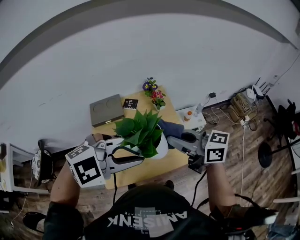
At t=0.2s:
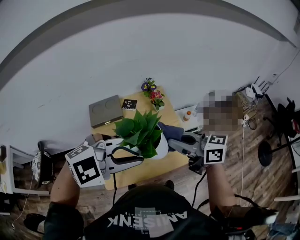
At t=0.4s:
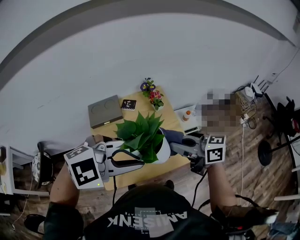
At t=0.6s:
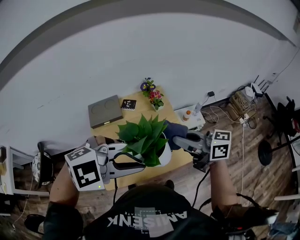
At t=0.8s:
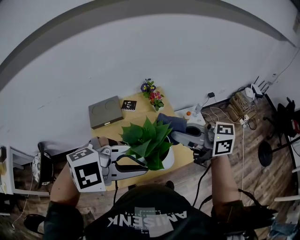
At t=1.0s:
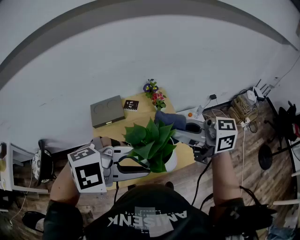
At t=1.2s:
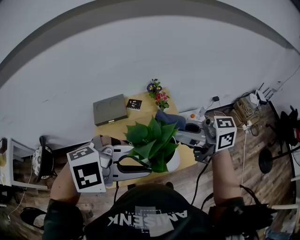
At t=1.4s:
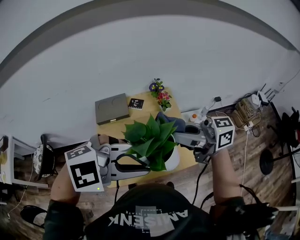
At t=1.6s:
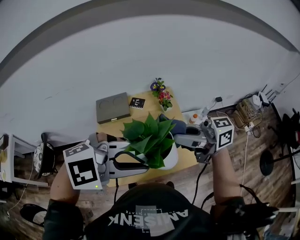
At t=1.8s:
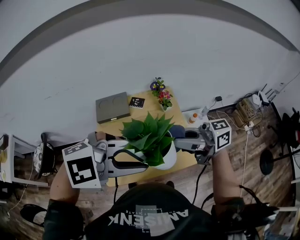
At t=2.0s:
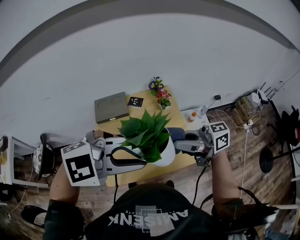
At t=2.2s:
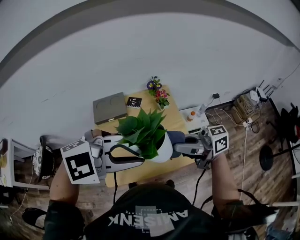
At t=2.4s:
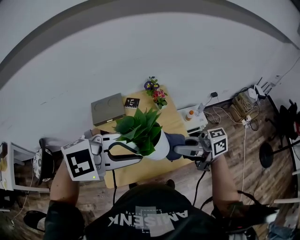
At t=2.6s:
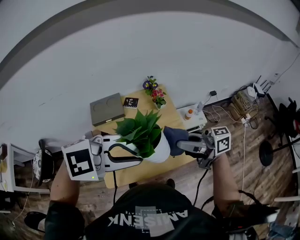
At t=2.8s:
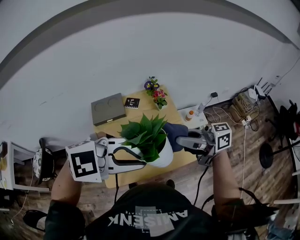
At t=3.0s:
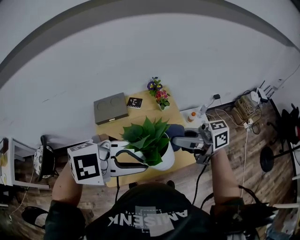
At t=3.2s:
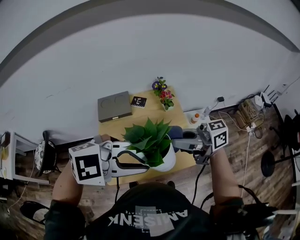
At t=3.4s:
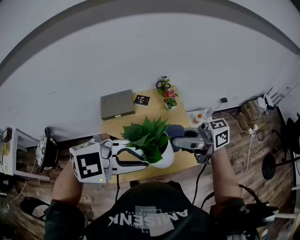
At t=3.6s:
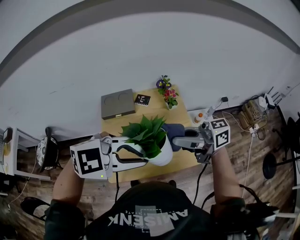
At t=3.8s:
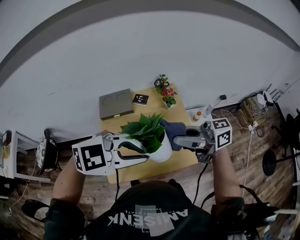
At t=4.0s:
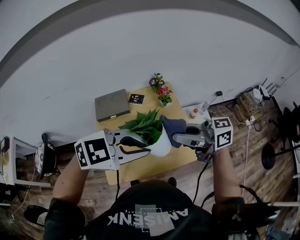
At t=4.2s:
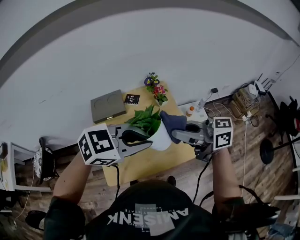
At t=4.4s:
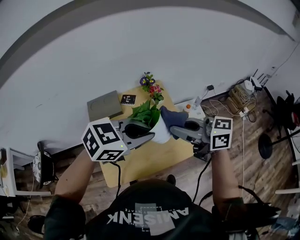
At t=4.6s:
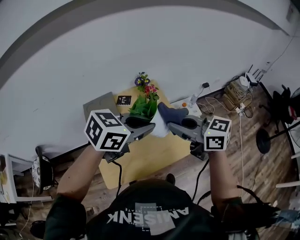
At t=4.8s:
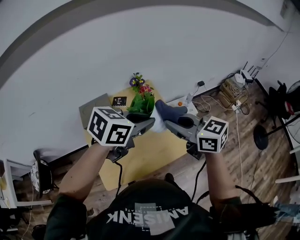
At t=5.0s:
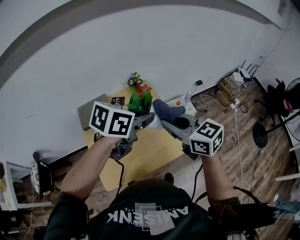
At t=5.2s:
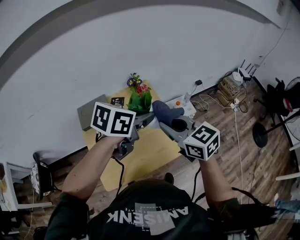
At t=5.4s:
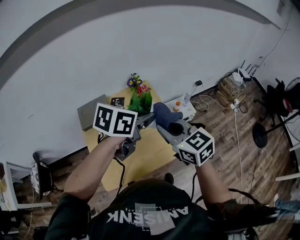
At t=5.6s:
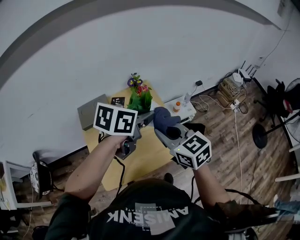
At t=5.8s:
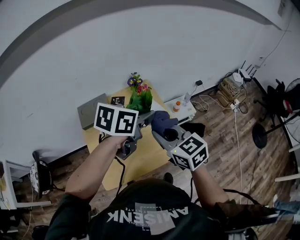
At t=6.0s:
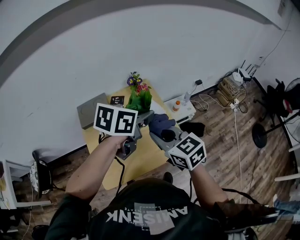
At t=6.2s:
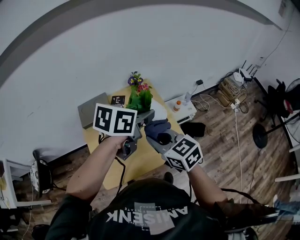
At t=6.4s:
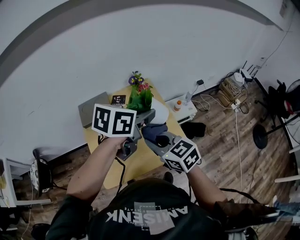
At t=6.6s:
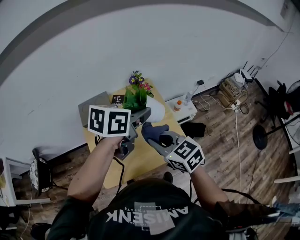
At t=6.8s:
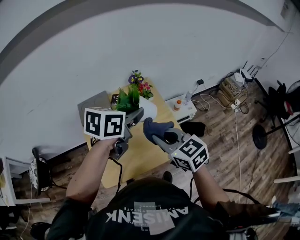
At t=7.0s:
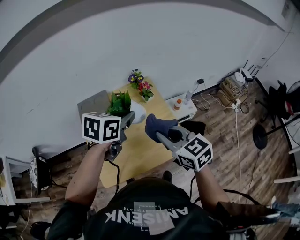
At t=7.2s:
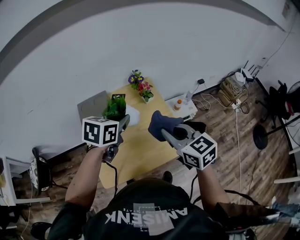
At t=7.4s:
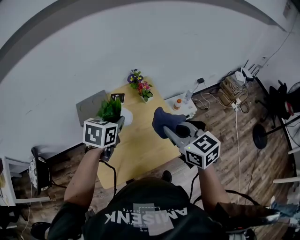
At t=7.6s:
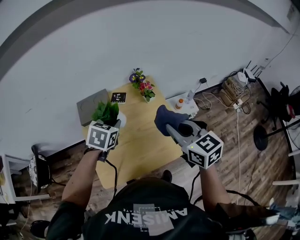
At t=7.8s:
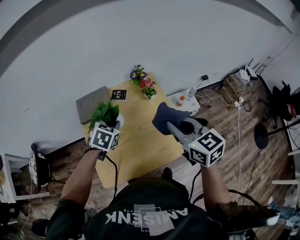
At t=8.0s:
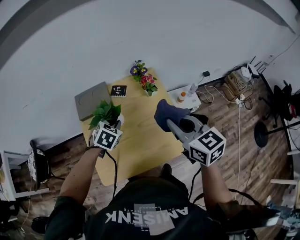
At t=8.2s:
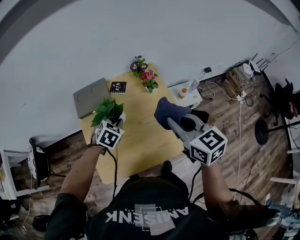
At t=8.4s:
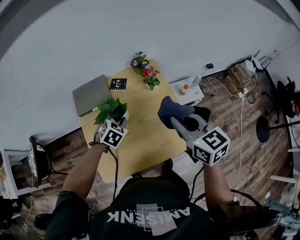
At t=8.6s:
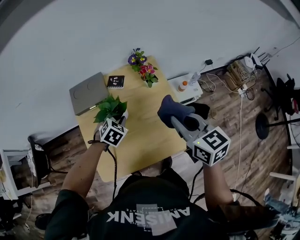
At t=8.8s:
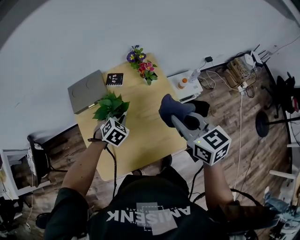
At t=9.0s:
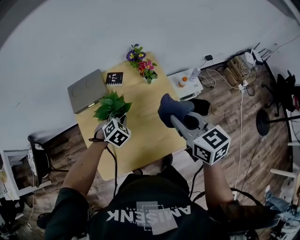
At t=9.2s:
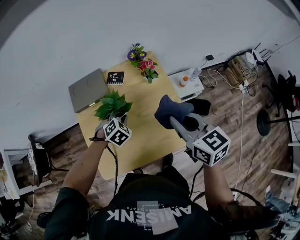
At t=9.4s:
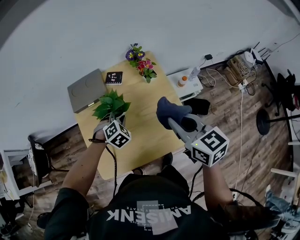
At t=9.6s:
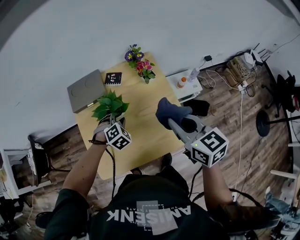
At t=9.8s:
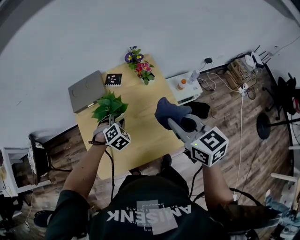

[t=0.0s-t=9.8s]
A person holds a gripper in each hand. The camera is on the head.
t=0.0s to t=1.4s: The right gripper goes approximately 5 cm upward, and turns by about 30 degrees.
t=1.4s to t=2.8s: The right gripper shifts about 5 cm downward.
t=2.8s to t=4.2s: The left gripper shifts by roughly 10 cm, and swivels approximately 30 degrees.
t=4.2s to t=5.6s: The left gripper shifts by roughly 10 cm, and rotates about 40 degrees, while the right gripper moves about 5 cm, and turns by roughly 50 degrees.
t=5.6s to t=7.0s: The left gripper goes some 10 cm to the left.
t=7.0s to t=8.4s: The left gripper heads downward, covering roughly 20 cm, and changes its angle by roughly 40 degrees, while the right gripper is displaced forward by some 10 cm.
t=8.4s to t=9.8s: The left gripper turns by roughly 20 degrees.

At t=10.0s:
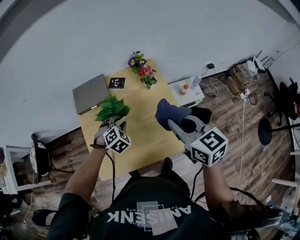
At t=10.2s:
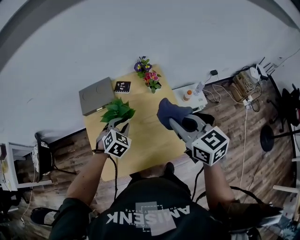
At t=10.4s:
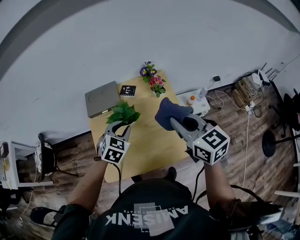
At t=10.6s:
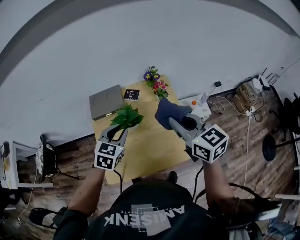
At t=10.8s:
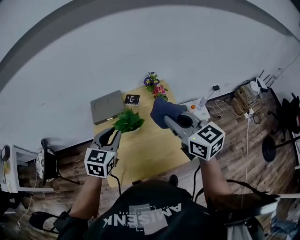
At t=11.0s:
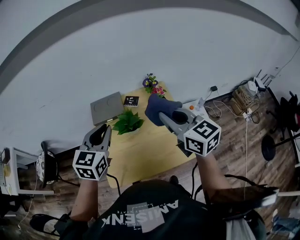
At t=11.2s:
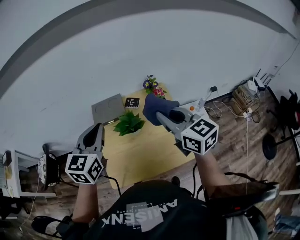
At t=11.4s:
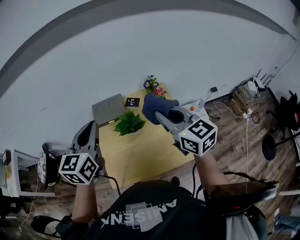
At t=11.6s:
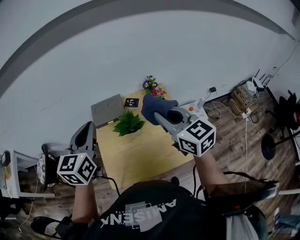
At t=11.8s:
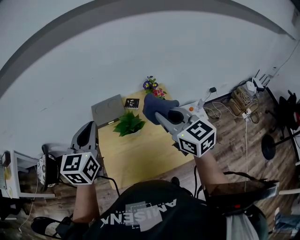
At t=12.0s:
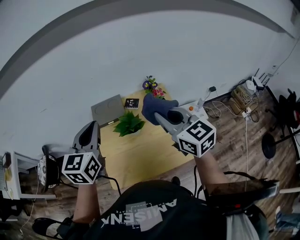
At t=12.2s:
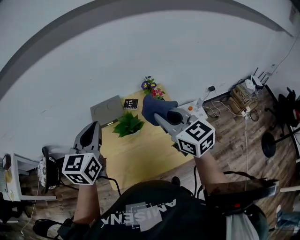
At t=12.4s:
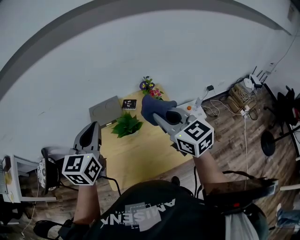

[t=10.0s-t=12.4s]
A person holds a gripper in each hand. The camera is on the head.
t=10.0s to t=11.2s: The right gripper travels upward and to the left by about 15 cm; the left gripper travels upward by approximately 30 cm, points its fingers about 40 degrees further upward, and closes its fingers.
t=11.2s to t=12.4s: The grippers make only small movements.

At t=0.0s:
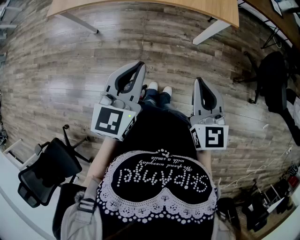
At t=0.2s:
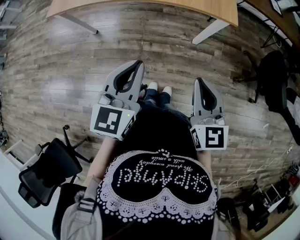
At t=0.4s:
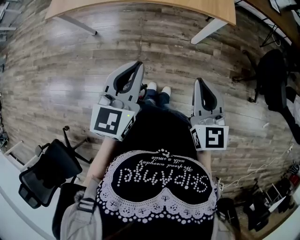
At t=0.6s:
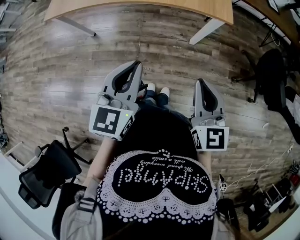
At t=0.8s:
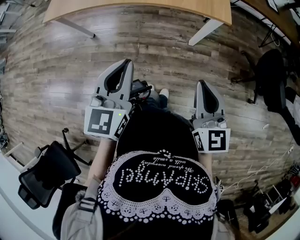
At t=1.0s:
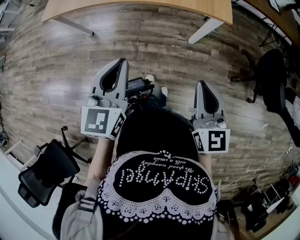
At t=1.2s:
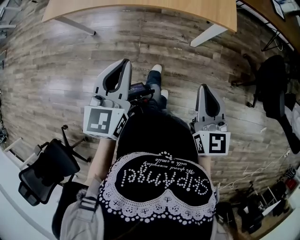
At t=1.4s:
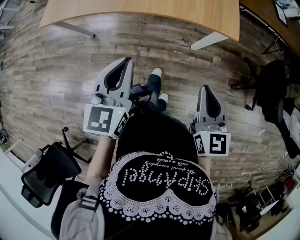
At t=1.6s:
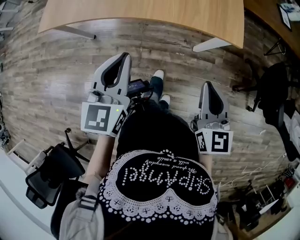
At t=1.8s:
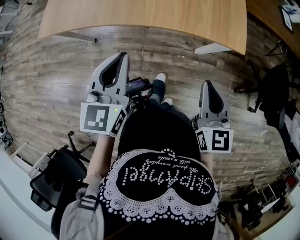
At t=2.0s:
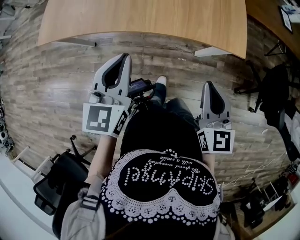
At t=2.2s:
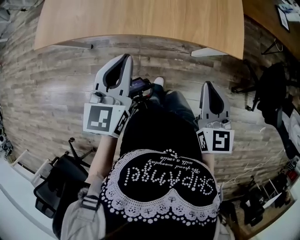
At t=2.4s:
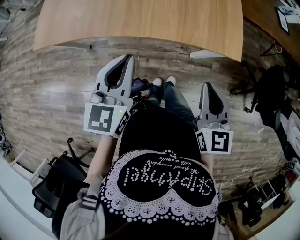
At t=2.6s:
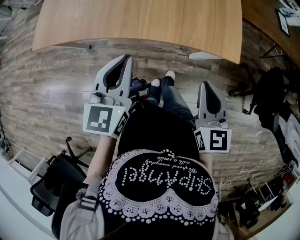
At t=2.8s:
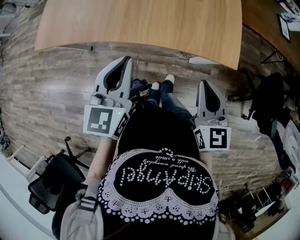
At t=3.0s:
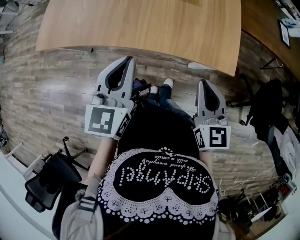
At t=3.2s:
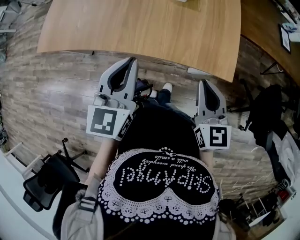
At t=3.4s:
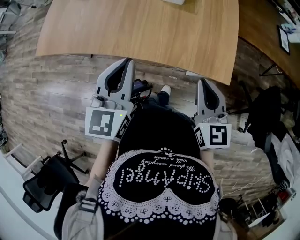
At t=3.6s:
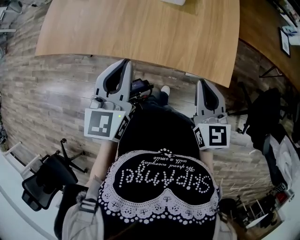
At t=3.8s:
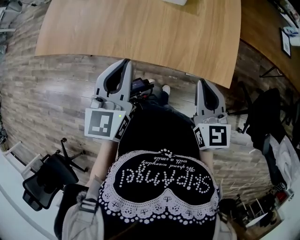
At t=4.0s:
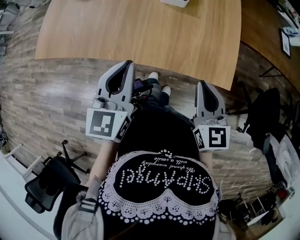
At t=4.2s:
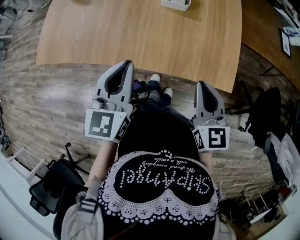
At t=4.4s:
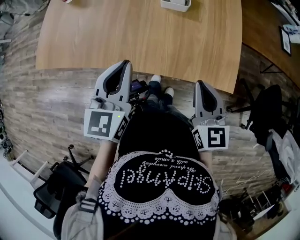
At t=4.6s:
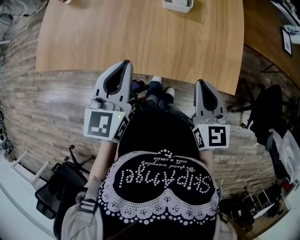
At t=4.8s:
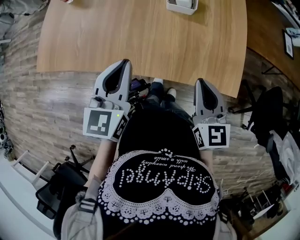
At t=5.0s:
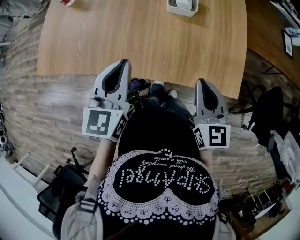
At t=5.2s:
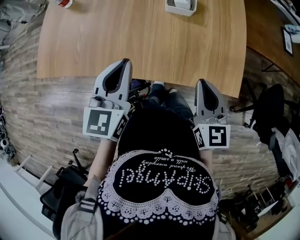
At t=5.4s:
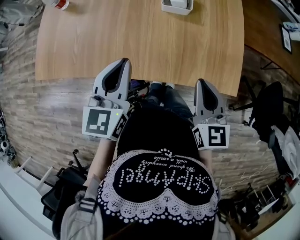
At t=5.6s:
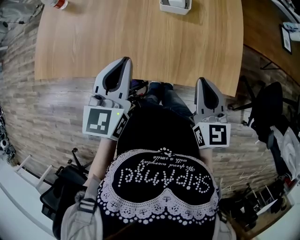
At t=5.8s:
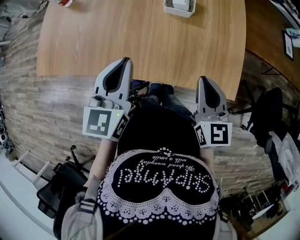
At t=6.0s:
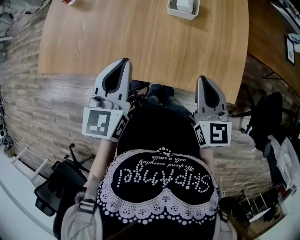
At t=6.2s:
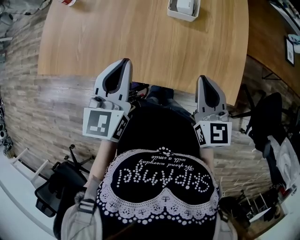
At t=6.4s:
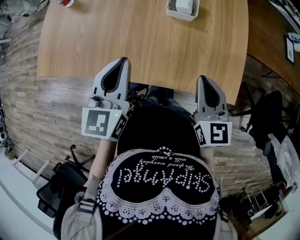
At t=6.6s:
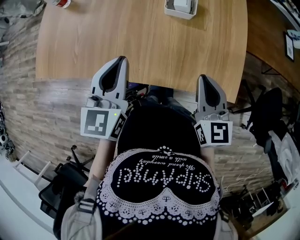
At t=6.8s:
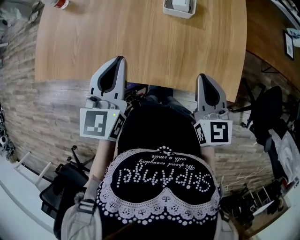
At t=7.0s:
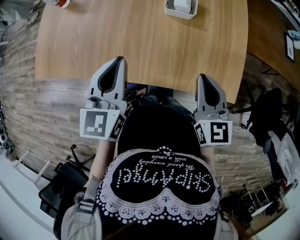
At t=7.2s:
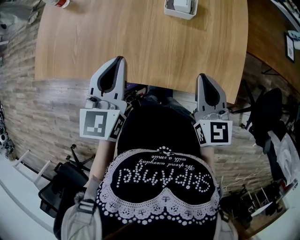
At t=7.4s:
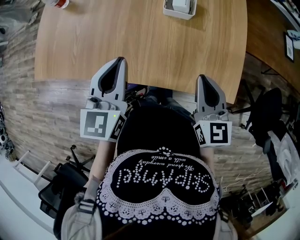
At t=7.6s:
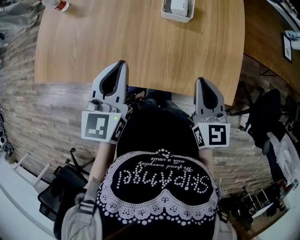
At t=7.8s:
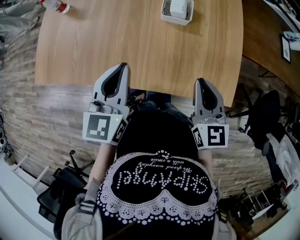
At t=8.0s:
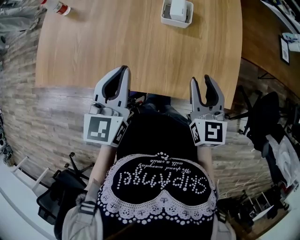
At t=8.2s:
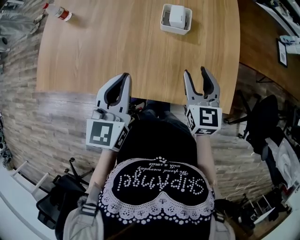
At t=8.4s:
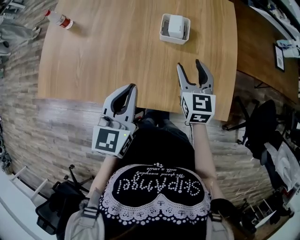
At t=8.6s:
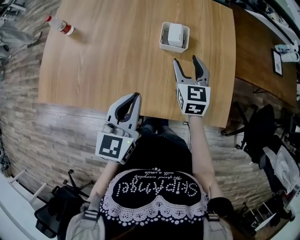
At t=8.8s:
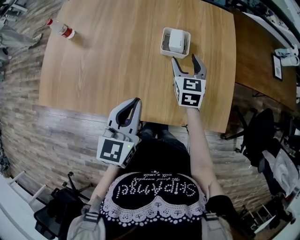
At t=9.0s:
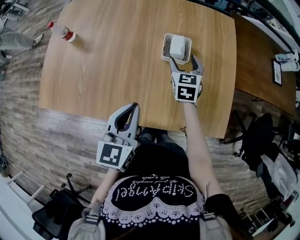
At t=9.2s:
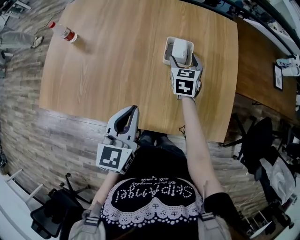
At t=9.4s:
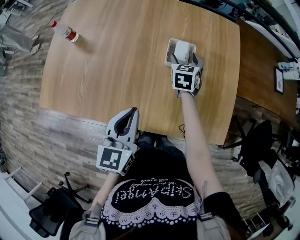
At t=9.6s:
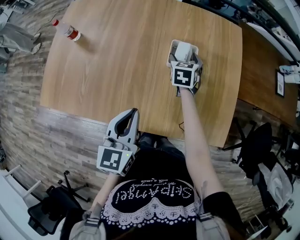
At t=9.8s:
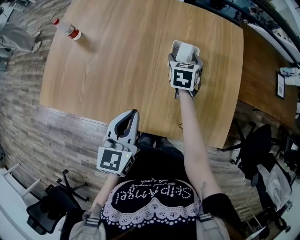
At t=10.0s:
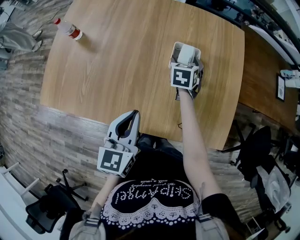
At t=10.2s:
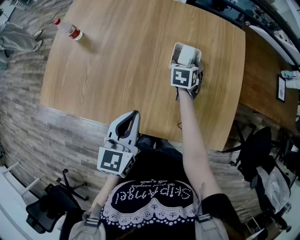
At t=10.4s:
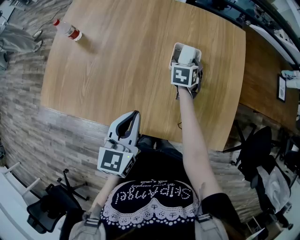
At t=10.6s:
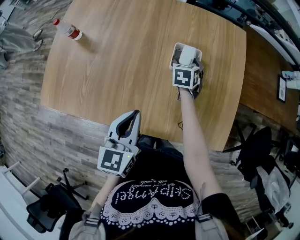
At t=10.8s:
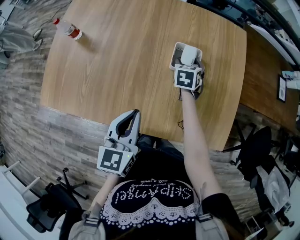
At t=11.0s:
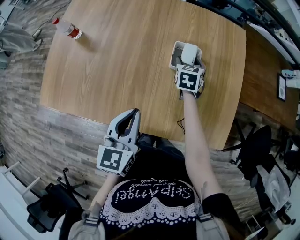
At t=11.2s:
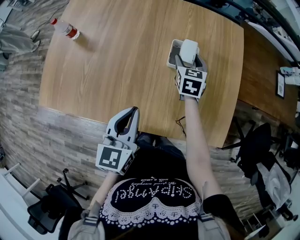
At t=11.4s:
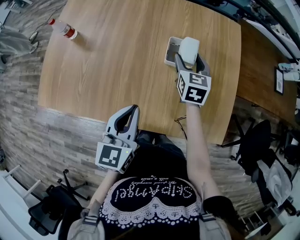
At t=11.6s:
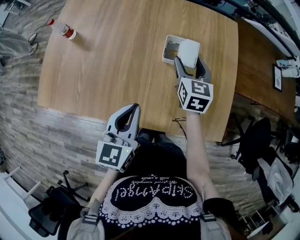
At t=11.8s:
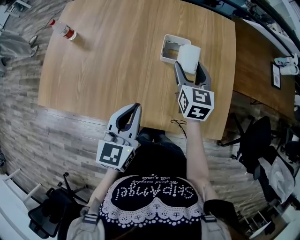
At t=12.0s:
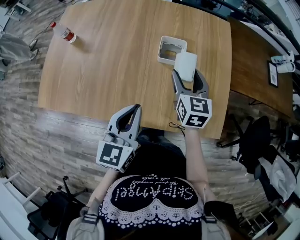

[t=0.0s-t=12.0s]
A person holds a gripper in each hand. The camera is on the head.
t=0.0s to t=1.6s: Both grippers move forward, roughly 15 cm.
t=1.6s to t=3.0s: Both grippers travel together forward, approximately 10 cm.
t=3.0s to t=4.4s: The two grippers go approximately 10 cm forward.
t=4.4s to t=6.0s: The right gripper moves forward, roughly 5 cm.
t=6.0s to t=7.6s: The grippers make only small movements.
t=7.6s to t=9.0s: The right gripper goes approximately 25 cm forward and downward, and opens.
t=9.0s to t=10.4s: The right gripper is displaced downward by some 5 cm, and changes its angle by about 20 degrees.
t=10.4s to t=12.0s: The left gripper shifts by some 5 cm. The right gripper goes about 20 cm upward and backward, and rotates roughly 30 degrees.
